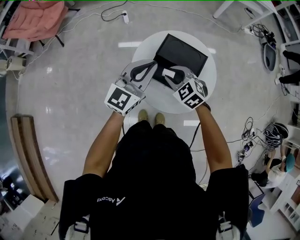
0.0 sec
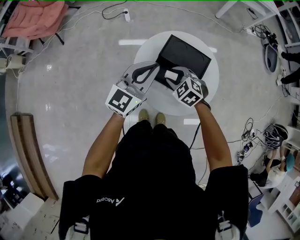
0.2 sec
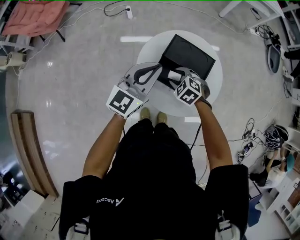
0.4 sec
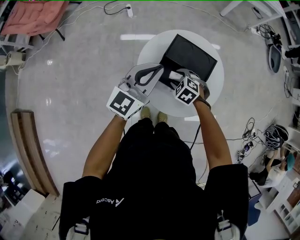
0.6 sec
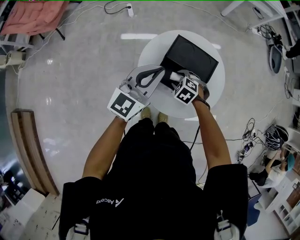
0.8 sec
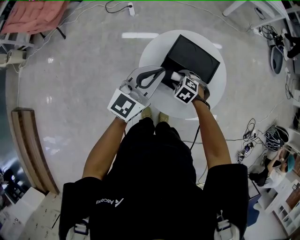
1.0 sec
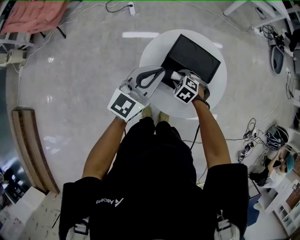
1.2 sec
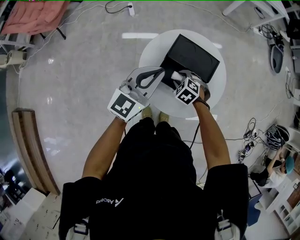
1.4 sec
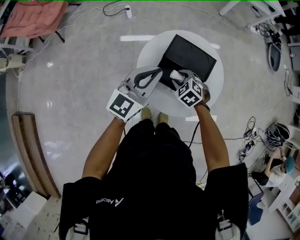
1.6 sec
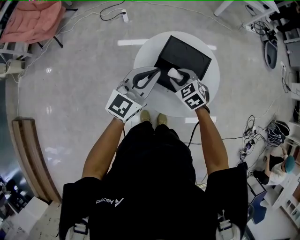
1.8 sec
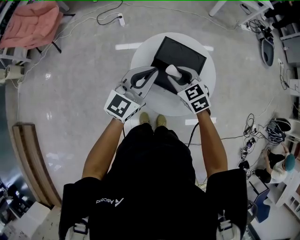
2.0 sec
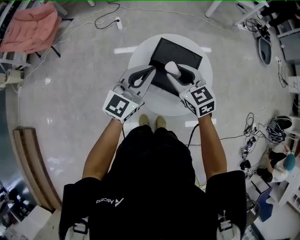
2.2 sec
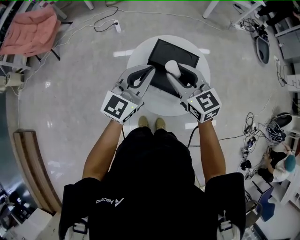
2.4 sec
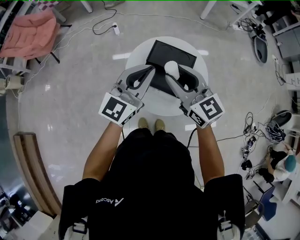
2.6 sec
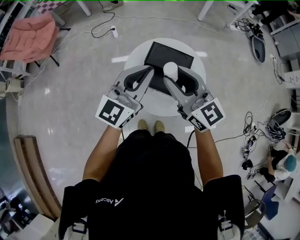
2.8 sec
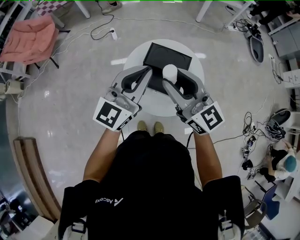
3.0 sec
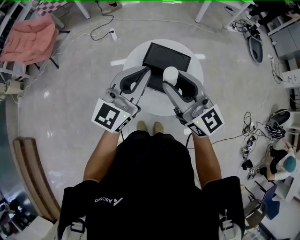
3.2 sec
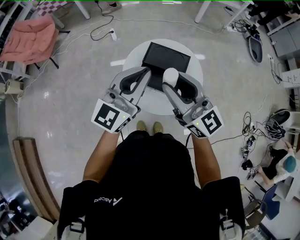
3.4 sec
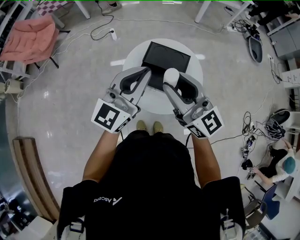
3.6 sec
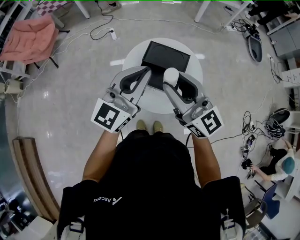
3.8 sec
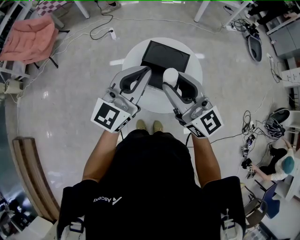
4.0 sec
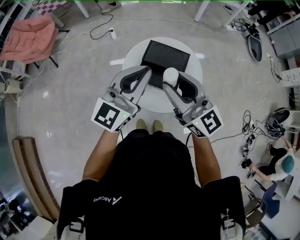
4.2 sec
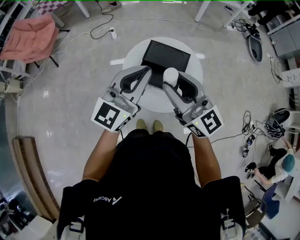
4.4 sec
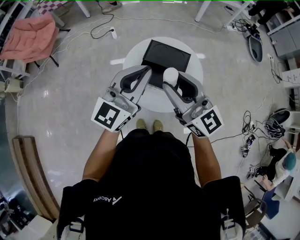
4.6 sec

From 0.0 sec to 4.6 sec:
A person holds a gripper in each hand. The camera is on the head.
From 0.0 sec to 1.6 sec: The right gripper moves downward, approximately 10 cm.
From 1.6 sec to 3.0 sec: The right gripper moves upward, some 35 cm, and tilts its fingers roughly 70 degrees upward, while the left gripper goes approximately 15 cm upward, to the right and backward.
From 3.0 sec to 4.6 sec: The grippers make only small movements.

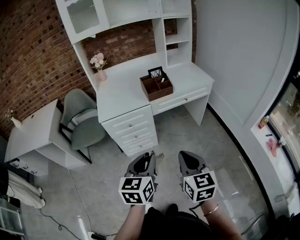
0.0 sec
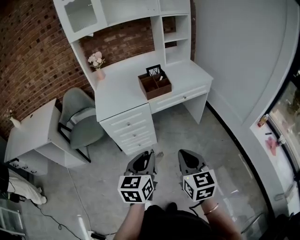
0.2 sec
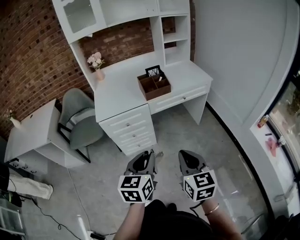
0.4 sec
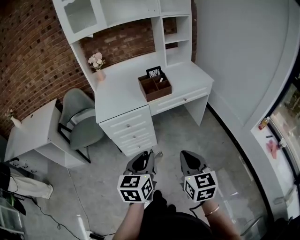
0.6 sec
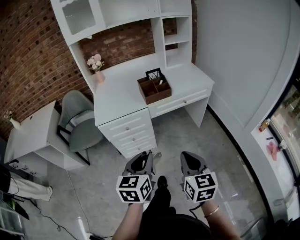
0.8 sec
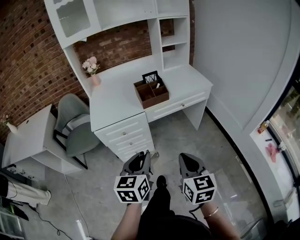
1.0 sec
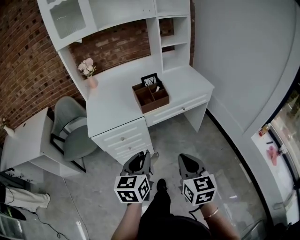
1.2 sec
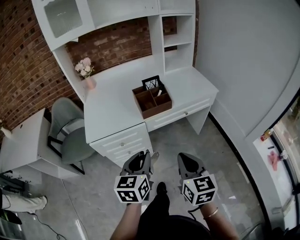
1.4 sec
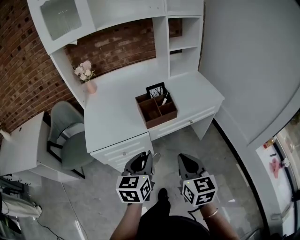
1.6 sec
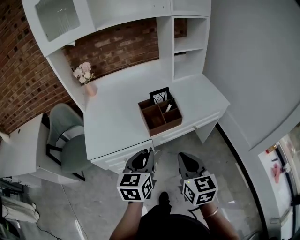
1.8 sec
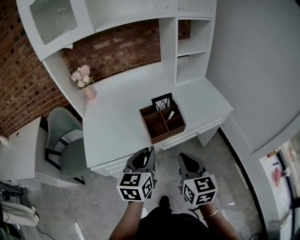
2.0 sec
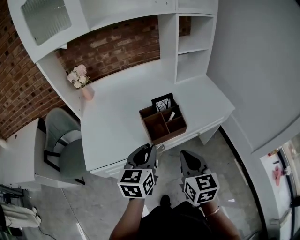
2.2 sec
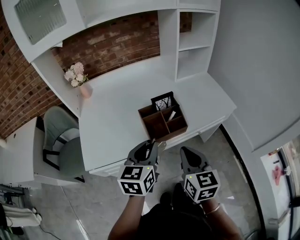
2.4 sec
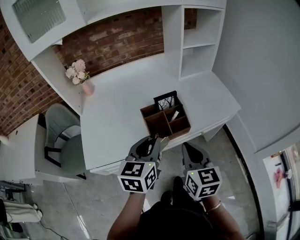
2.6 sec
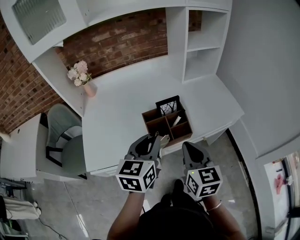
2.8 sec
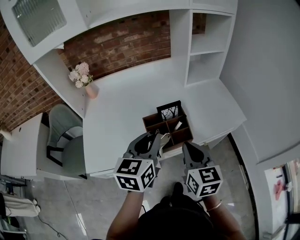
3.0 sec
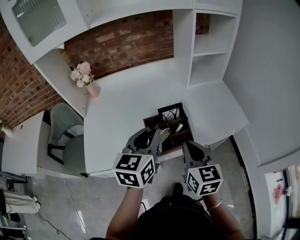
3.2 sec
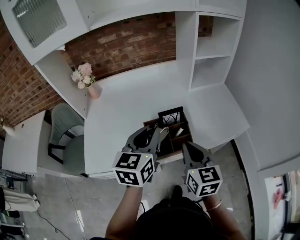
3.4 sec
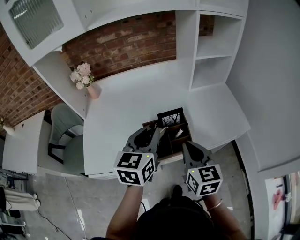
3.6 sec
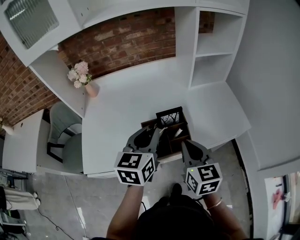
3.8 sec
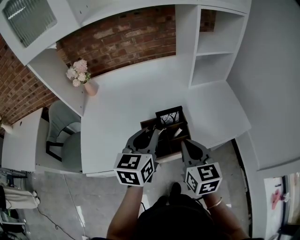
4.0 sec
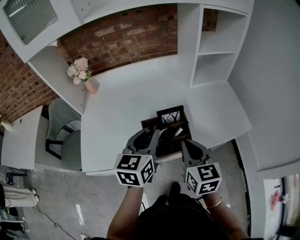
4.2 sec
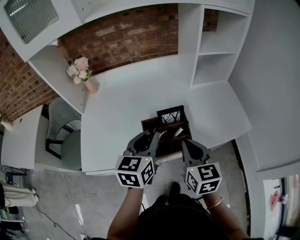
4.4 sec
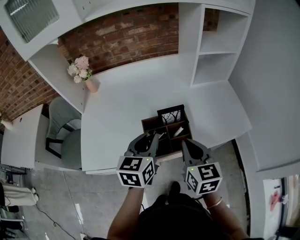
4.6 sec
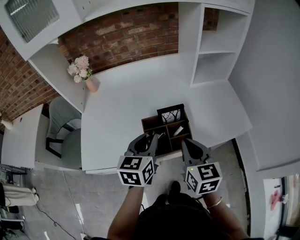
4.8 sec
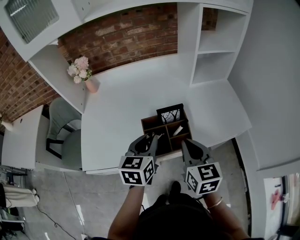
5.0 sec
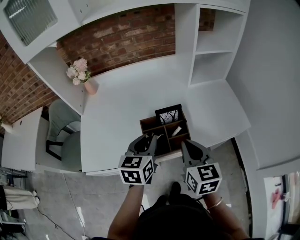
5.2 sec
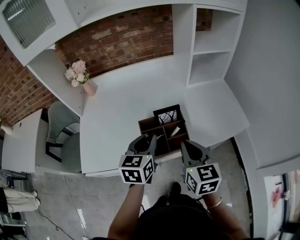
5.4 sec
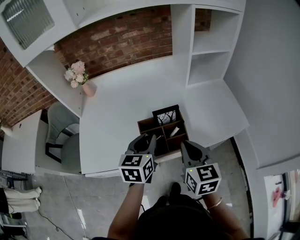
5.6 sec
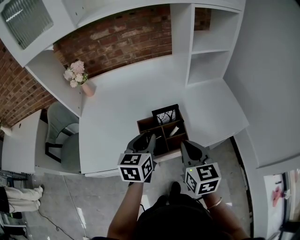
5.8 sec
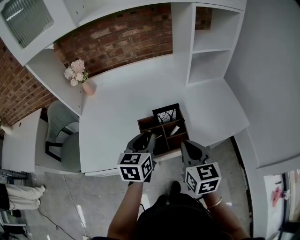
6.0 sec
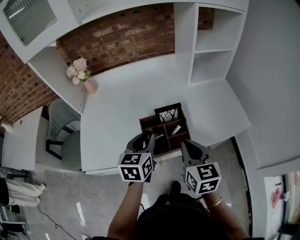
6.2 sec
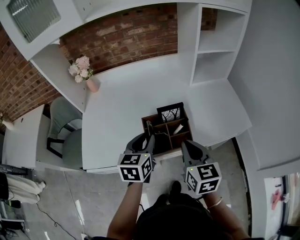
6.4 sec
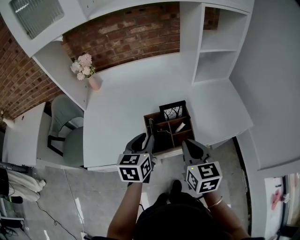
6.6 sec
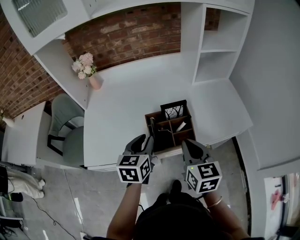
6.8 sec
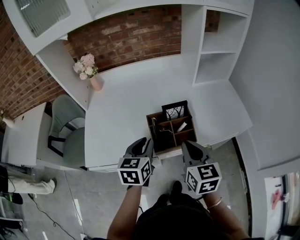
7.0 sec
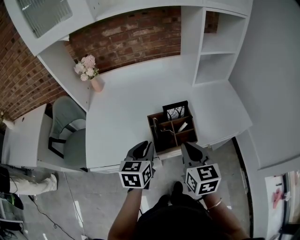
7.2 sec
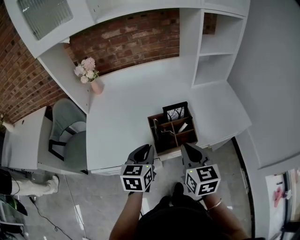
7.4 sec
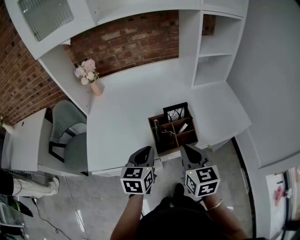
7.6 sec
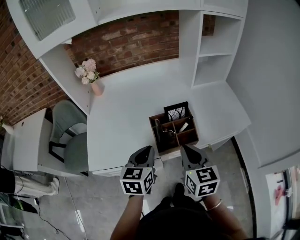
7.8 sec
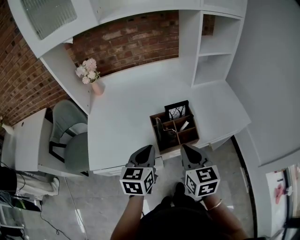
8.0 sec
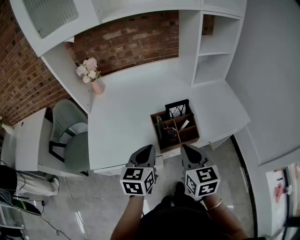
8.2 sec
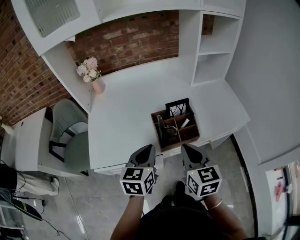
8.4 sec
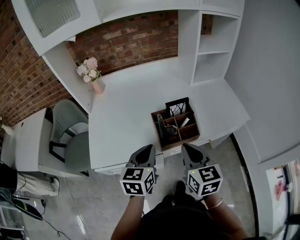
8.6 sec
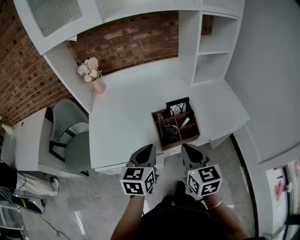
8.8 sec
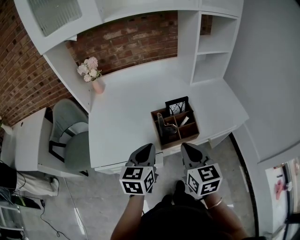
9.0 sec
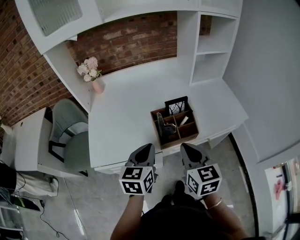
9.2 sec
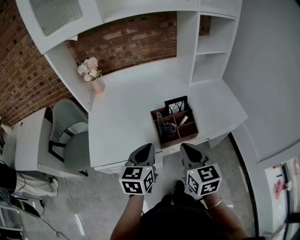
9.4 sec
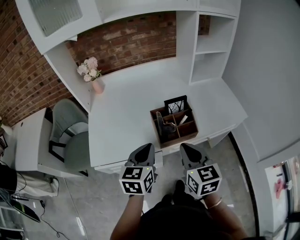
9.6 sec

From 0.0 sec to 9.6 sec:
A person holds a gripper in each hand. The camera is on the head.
From 0.0 sec to 1.6 sec: The grippers both shift forward by some 25 cm.
From 1.6 sec to 3.2 sec: Both grippers move forward, some 25 cm.
From 3.2 sec to 4.8 sec: The left gripper is displaced downward by approximately 10 cm.
From 4.8 sec to 6.4 sec: The grippers stay close to where they were, moving slightly.
From 6.4 sec to 8.0 sec: The left gripper moves backward, roughly 5 cm; the right gripper shifts by some 5 cm.
From 8.0 sec to 9.6 sec: The grippers stay close to where they were, moving slightly.

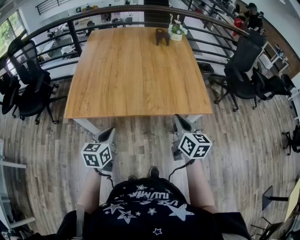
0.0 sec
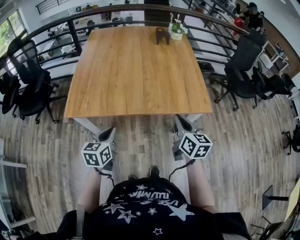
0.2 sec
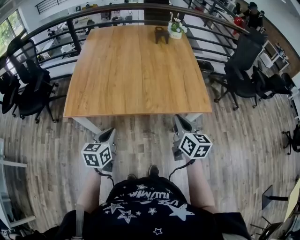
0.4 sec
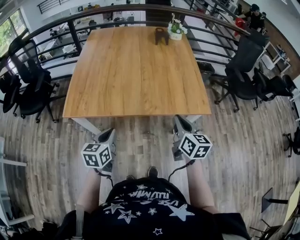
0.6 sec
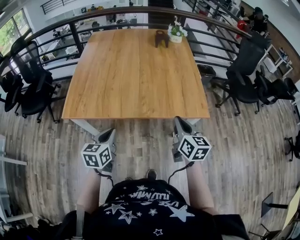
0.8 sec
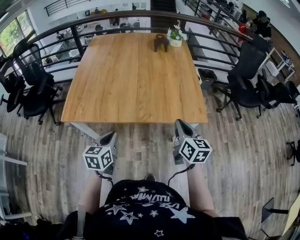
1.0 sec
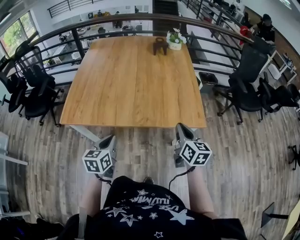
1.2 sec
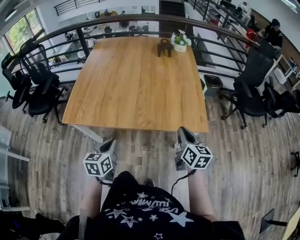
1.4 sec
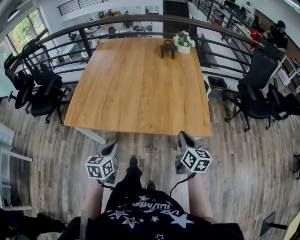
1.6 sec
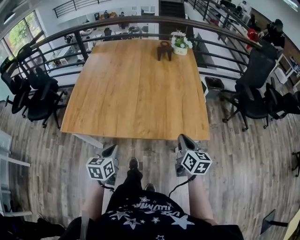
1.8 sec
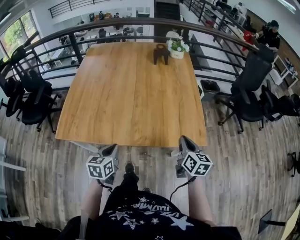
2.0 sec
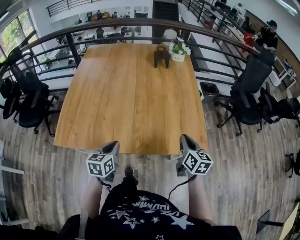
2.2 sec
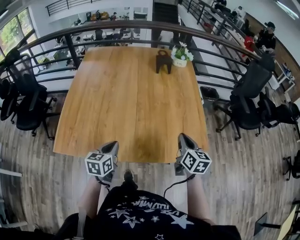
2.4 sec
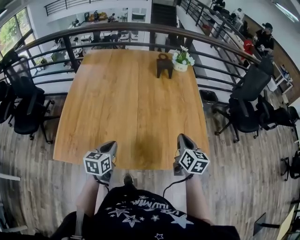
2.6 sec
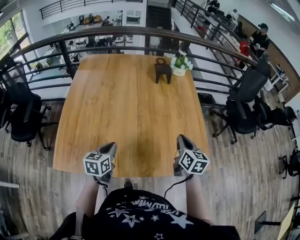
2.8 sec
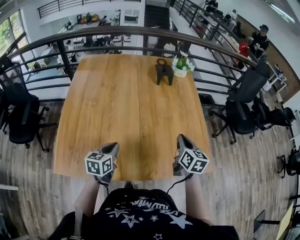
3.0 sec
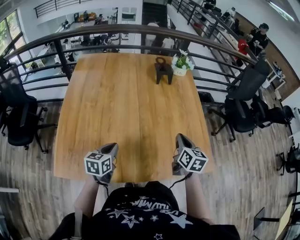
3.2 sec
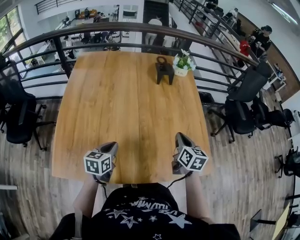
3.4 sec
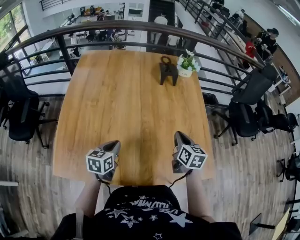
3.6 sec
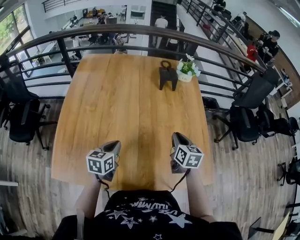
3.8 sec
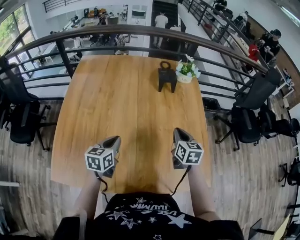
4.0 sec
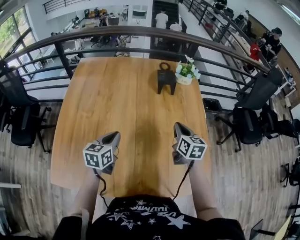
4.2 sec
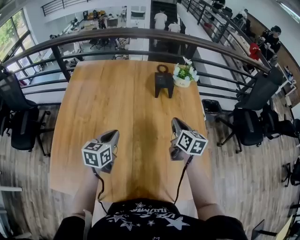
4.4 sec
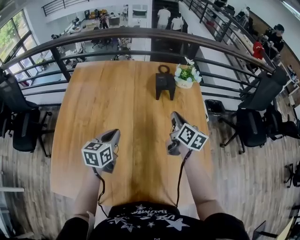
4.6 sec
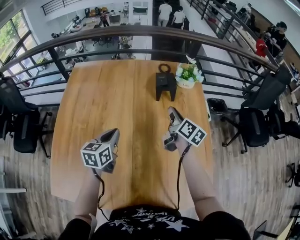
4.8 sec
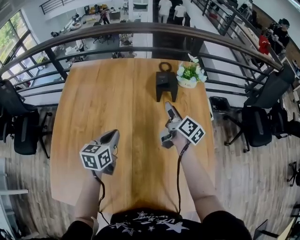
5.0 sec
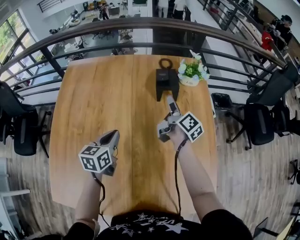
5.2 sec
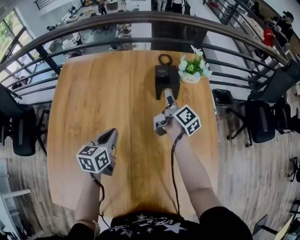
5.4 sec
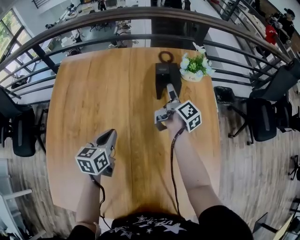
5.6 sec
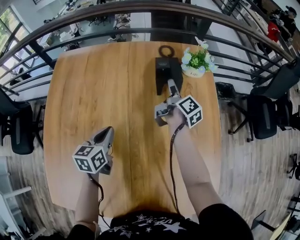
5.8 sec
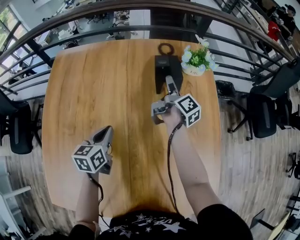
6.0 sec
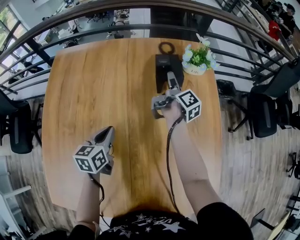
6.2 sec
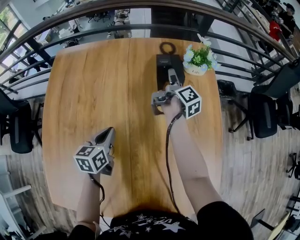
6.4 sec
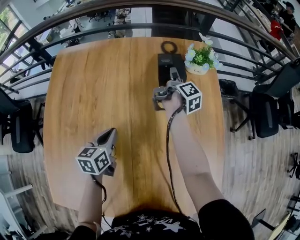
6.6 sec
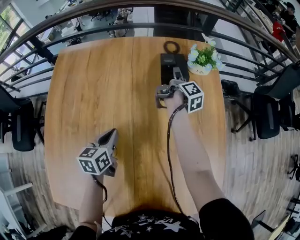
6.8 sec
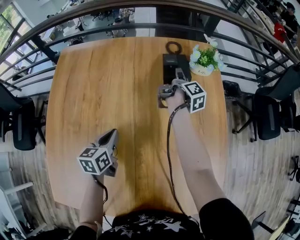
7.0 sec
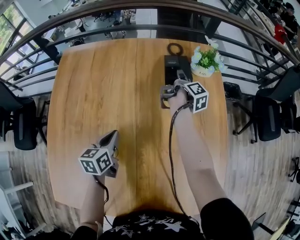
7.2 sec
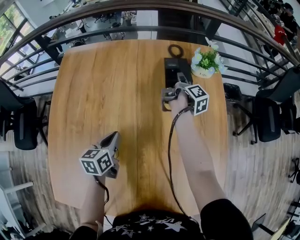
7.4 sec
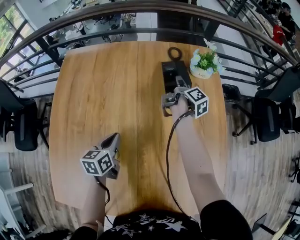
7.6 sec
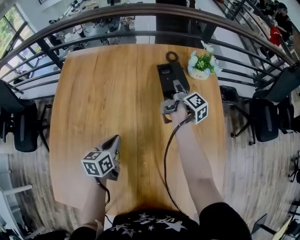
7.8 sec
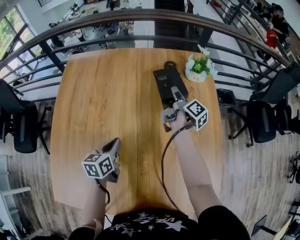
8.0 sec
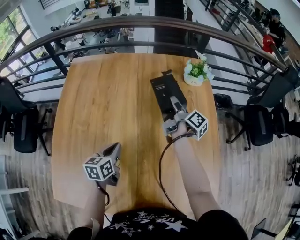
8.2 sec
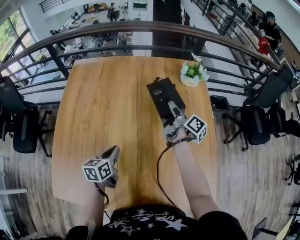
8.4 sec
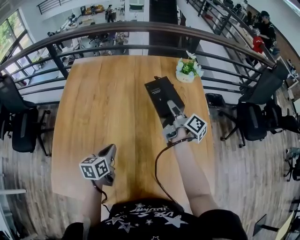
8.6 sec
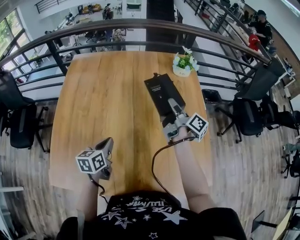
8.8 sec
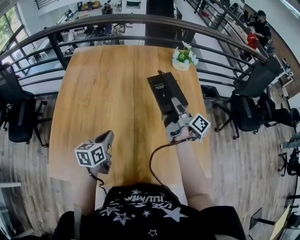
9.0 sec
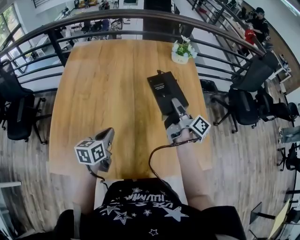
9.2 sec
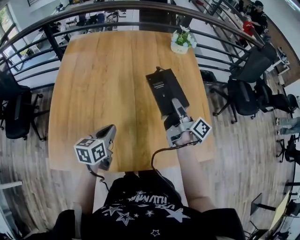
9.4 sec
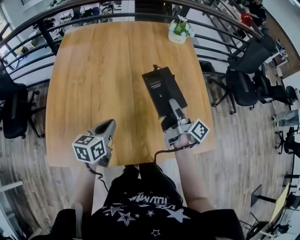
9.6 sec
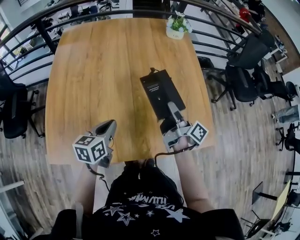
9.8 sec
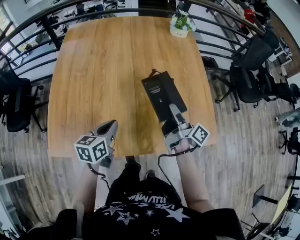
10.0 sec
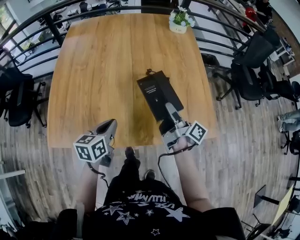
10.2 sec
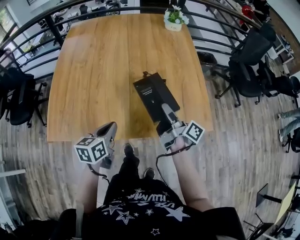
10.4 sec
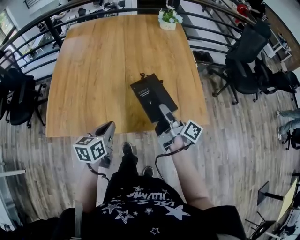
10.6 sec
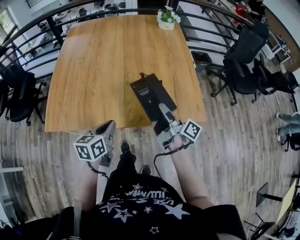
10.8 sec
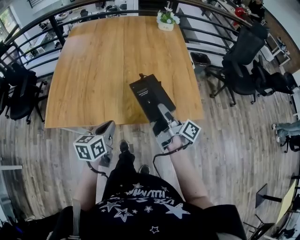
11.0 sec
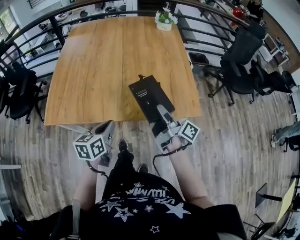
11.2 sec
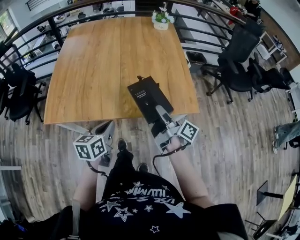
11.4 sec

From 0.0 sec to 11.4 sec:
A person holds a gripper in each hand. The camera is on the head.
From 0.0 sec to 1.4 sec: The left gripper heads to the right, covering about 10 cm. Meanwhile the right gripper heads to the right and forward, covering some 15 cm.
From 1.4 sec to 2.8 sec: The two grippers go some 25 cm forward.
From 2.8 sec to 4.2 sec: Both grippers move forward, approximately 20 cm.
From 4.2 sec to 5.6 sec: The right gripper shifts roughly 30 cm forward, rotates around the line of its fingers by roughly 60 degrees, clockwise from behind, and opens, while the left gripper heads forward and downward, covering some 15 cm.
From 5.6 sec to 7.2 sec: The right gripper travels forward by about 5 cm, and closes its fingers.
From 7.2 sec to 8.6 sec: The right gripper moves backward and upward, approximately 25 cm, and turns by roughly 30 degrees, while the left gripper shifts about 15 cm backward.
From 8.6 sec to 10.0 sec: The right gripper moves backward, some 30 cm. Meanwhile the left gripper is displaced backward by roughly 15 cm.
From 10.0 sec to 11.4 sec: The left gripper travels backward and to the right by roughly 20 cm, while the right gripper travels backward by some 20 cm.
